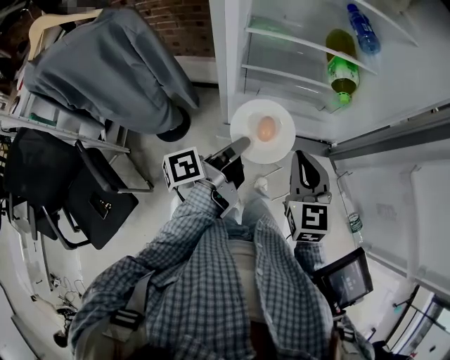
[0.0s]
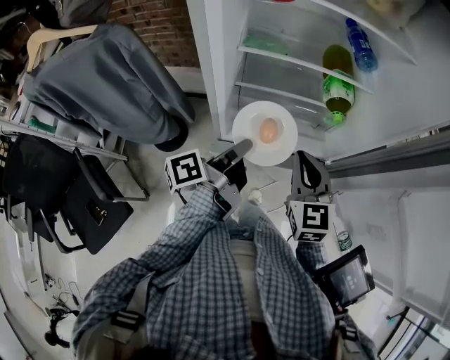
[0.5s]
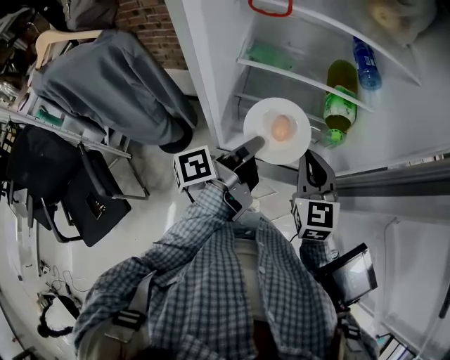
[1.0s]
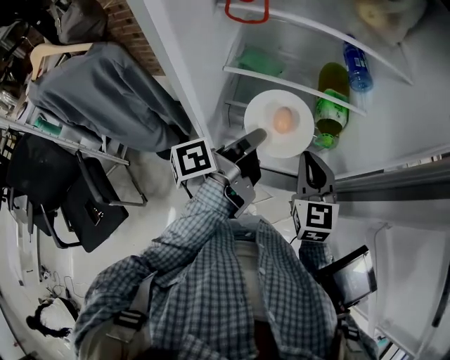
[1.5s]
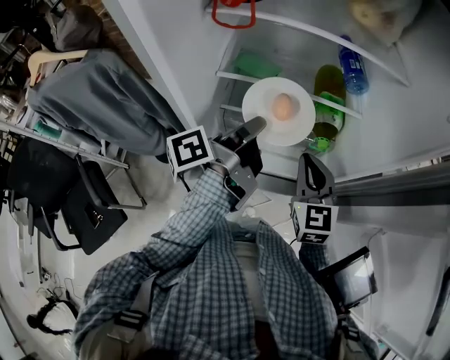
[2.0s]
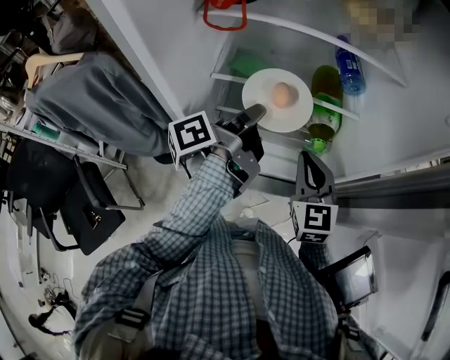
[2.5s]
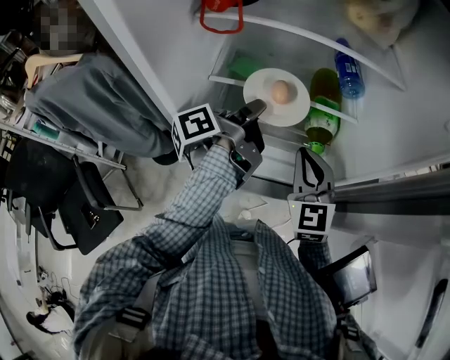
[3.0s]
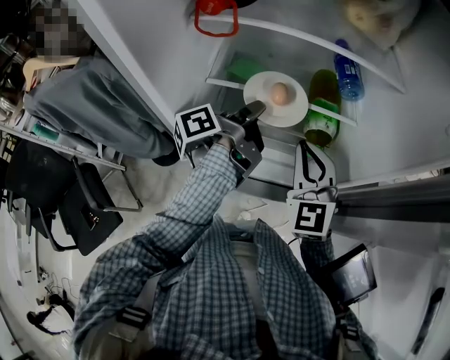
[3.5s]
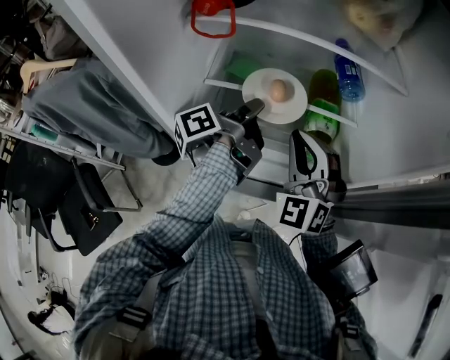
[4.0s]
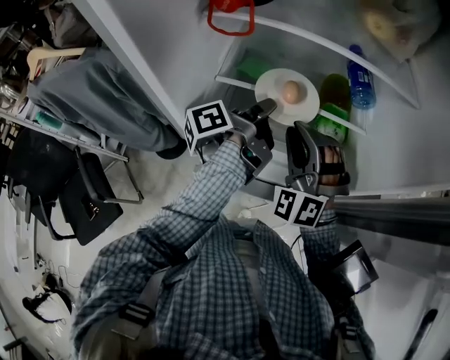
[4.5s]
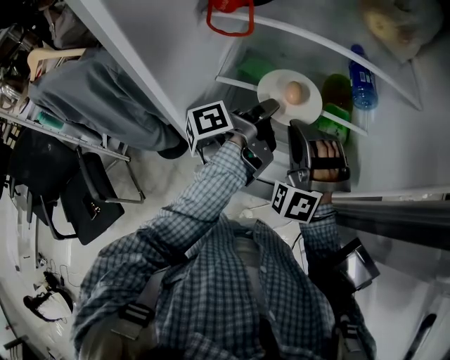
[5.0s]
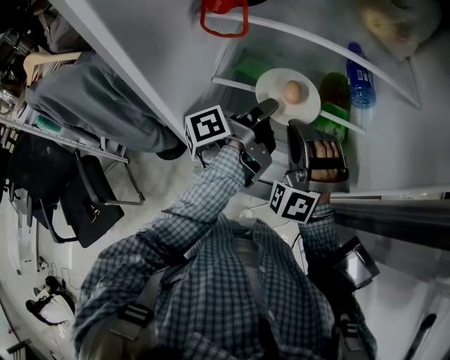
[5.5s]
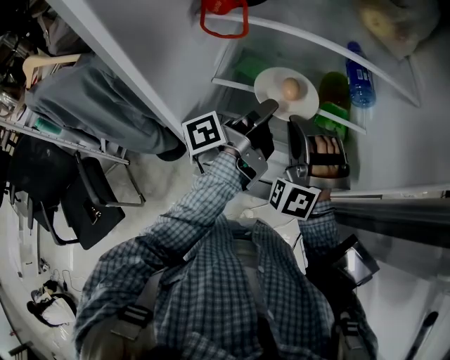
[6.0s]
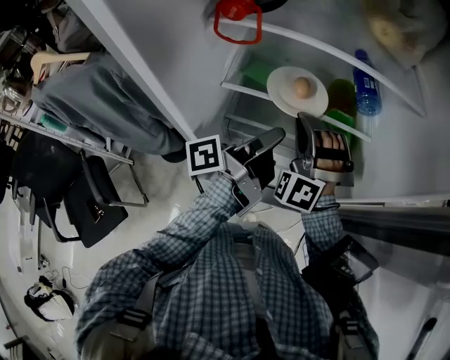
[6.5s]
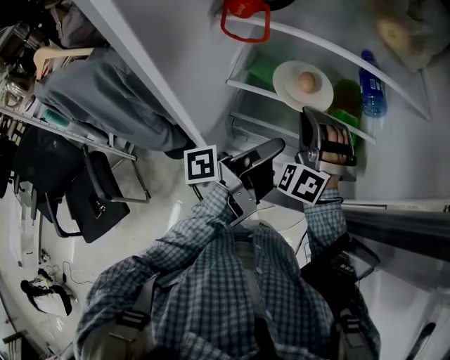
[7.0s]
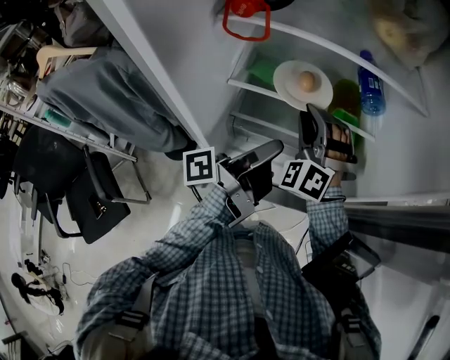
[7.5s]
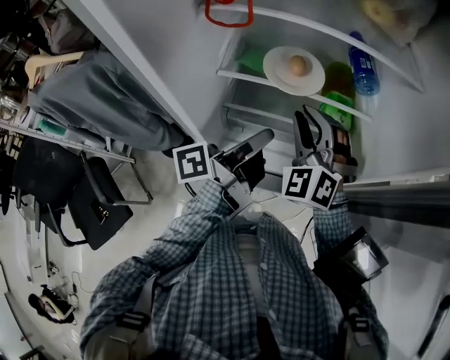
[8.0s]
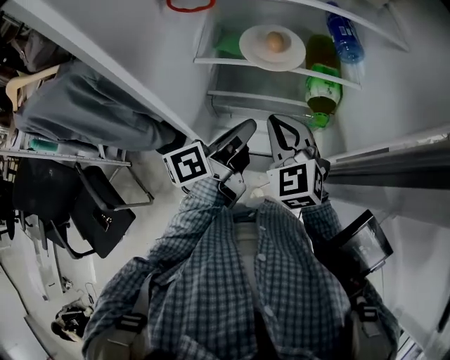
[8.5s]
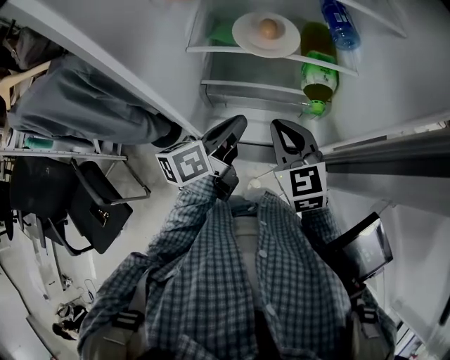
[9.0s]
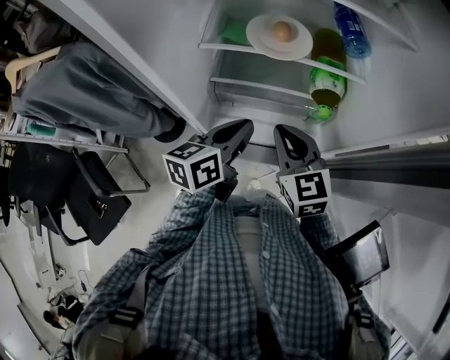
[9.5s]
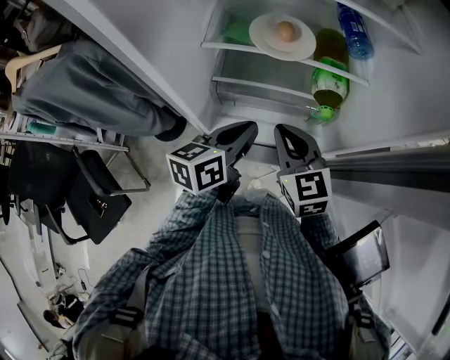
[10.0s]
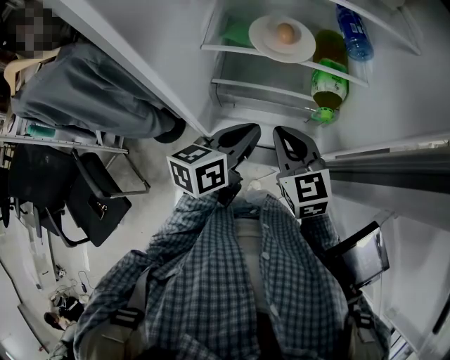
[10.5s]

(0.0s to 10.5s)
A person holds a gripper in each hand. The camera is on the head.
0.0s - 2.0s: The right gripper moves approximately 15 cm.
2.0s - 4.0s: The right gripper shifts by approximately 10 cm, and twists about 40 degrees counterclockwise, seen from behind.
4.0s - 6.5s: The right gripper changes place by approximately 10 cm, and swivels approximately 30 degrees.
6.5s - 8.5s: The right gripper ends up about 10 cm from where it was, and rolls clockwise, seen from behind, by some 50 degrees.

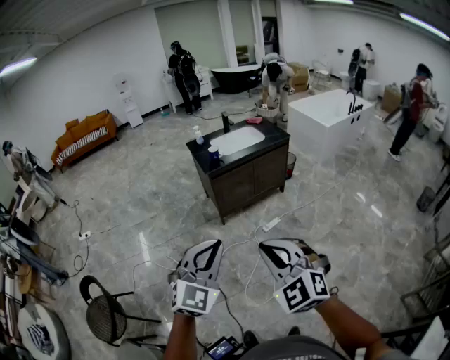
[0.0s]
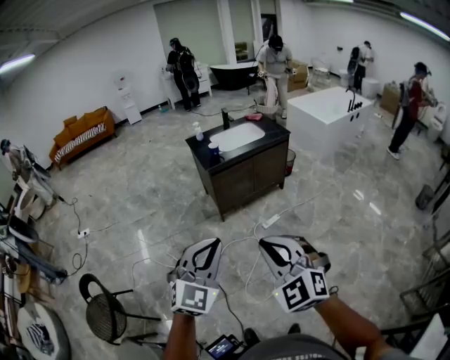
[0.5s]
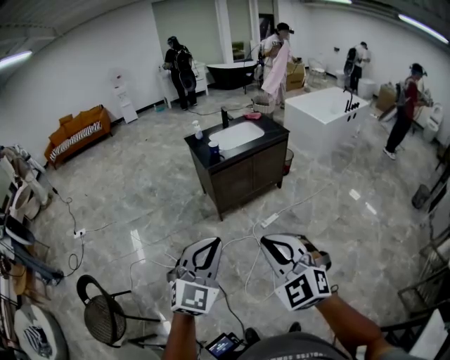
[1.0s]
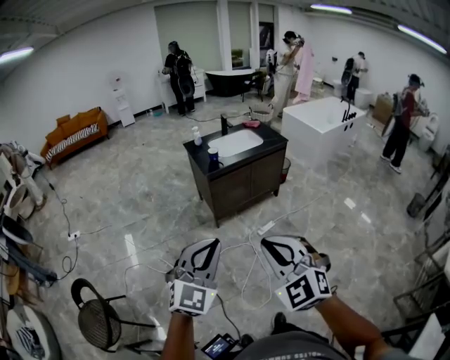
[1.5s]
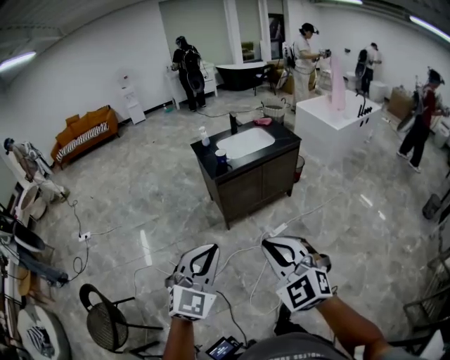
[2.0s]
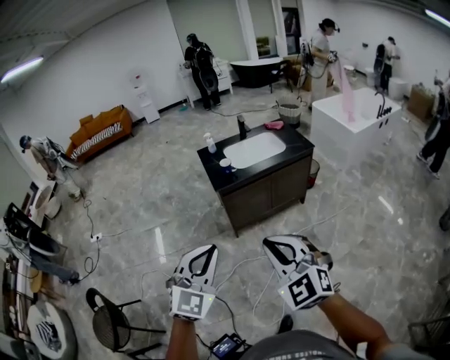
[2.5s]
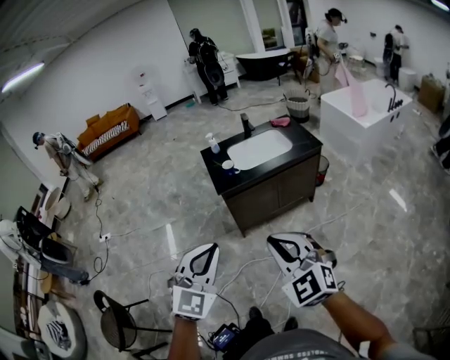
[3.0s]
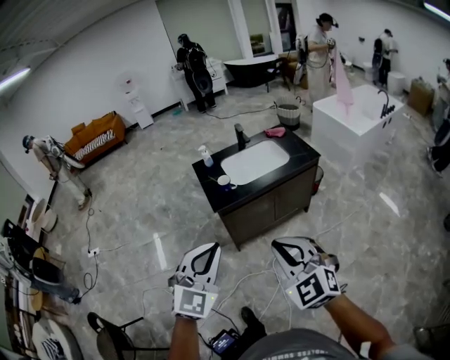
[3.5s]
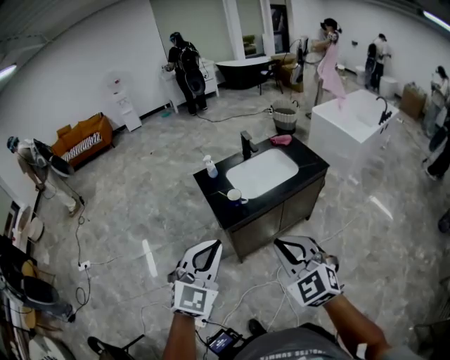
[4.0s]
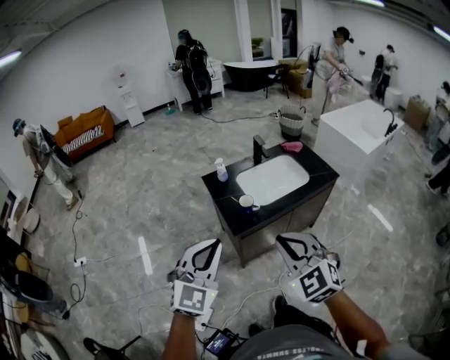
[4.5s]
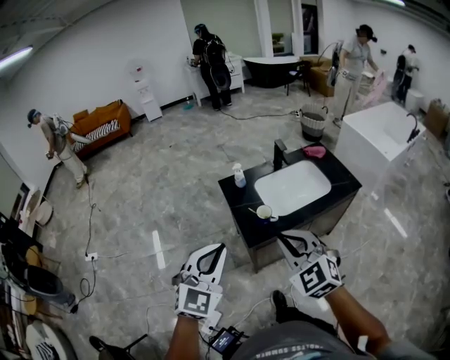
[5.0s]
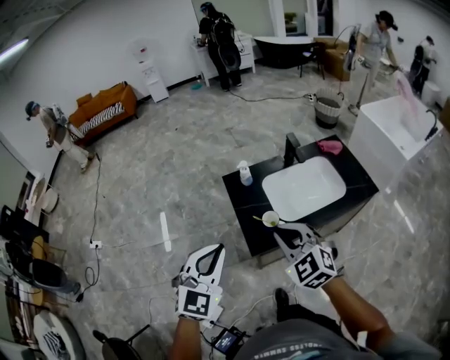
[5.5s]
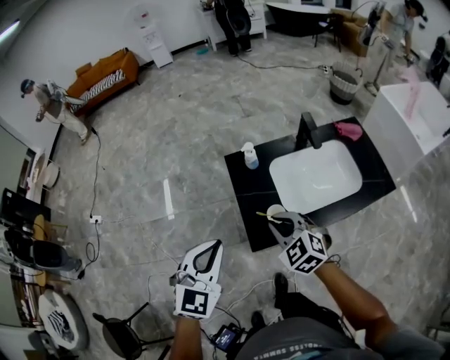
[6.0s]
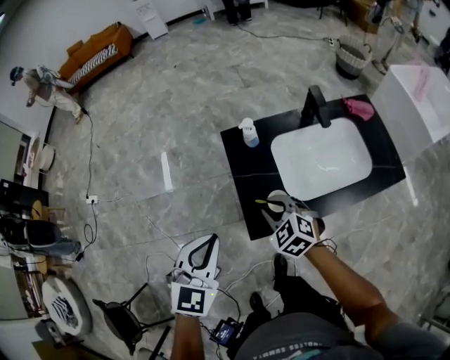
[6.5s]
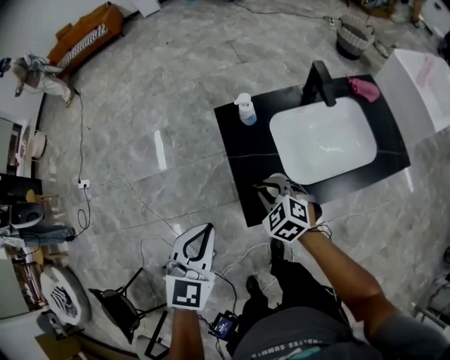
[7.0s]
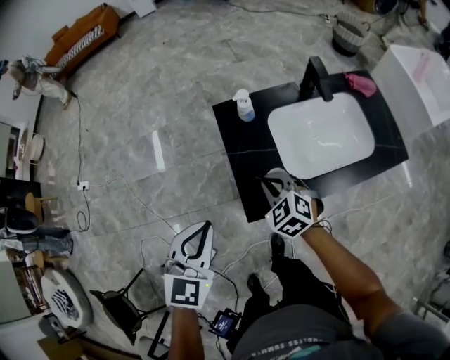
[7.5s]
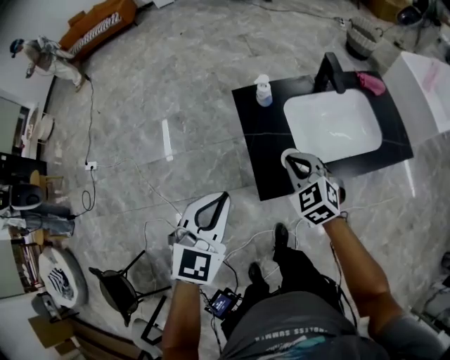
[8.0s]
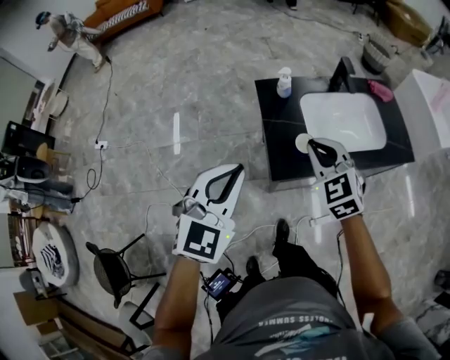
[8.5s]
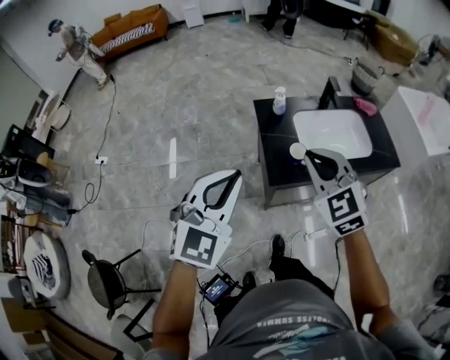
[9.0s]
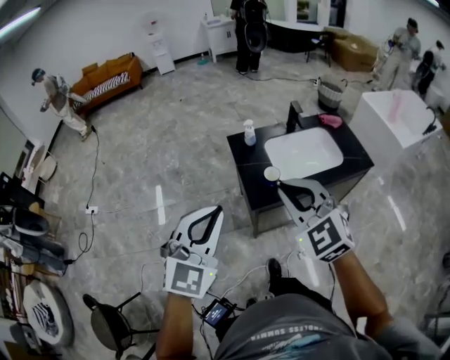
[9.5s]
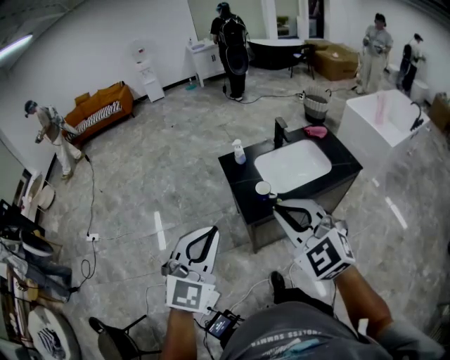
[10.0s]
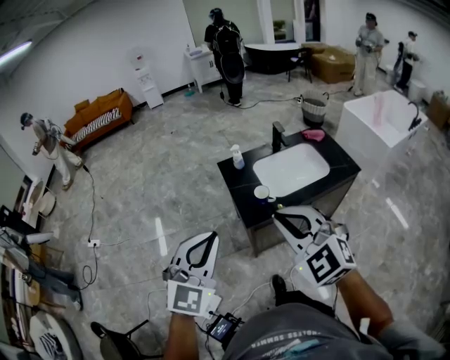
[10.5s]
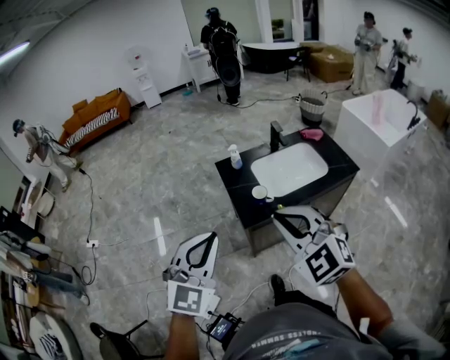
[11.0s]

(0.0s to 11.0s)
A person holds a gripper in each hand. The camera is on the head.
0.0s - 2.0s: Both grippers move forward, approximately 10 cm.
2.0s - 3.5s: The two grippers go about 25 cm forward.
3.5s - 5.5s: The grippers both shift forward and to the left by about 40 cm.
5.5s - 7.5s: The left gripper shifts roughly 15 cm downward and forward. Meanwhile the right gripper is displaced downward and forward by about 25 cm, and changes its angle by roughly 20 degrees.
7.5s - 9.0s: The left gripper is displaced upward and backward by approximately 20 cm, and rotates about 20 degrees. The right gripper moves upward and backward, approximately 30 cm, and swivels some 20 degrees.
9.0s - 11.0s: The left gripper shifts roughly 10 cm backward. The right gripper goes about 15 cm backward and upward.

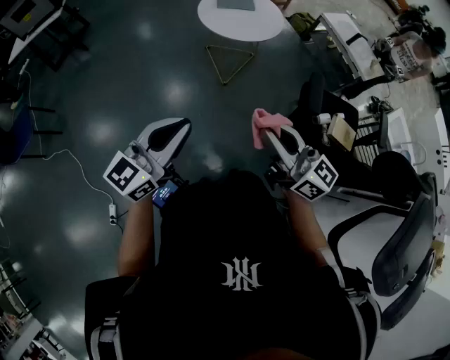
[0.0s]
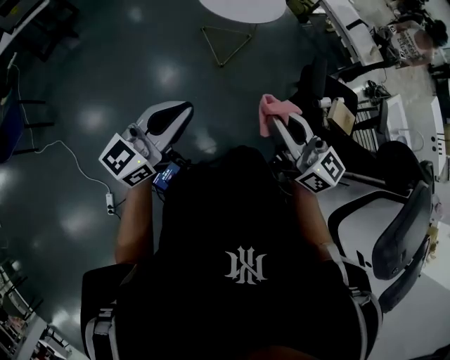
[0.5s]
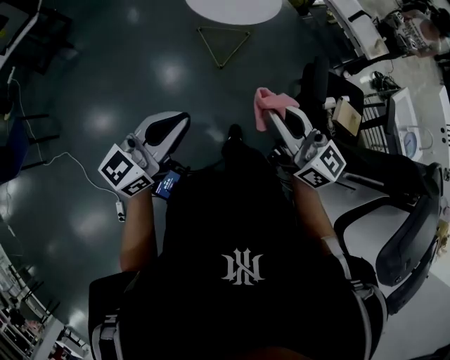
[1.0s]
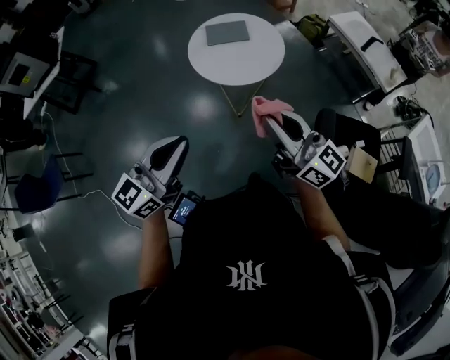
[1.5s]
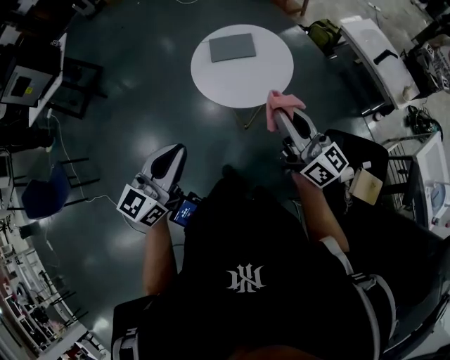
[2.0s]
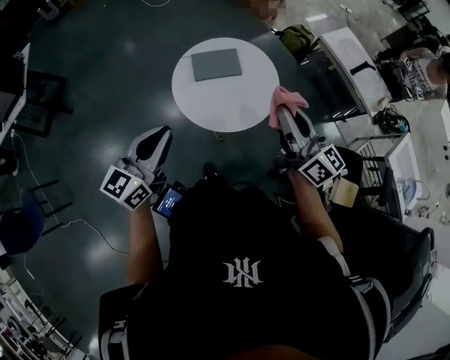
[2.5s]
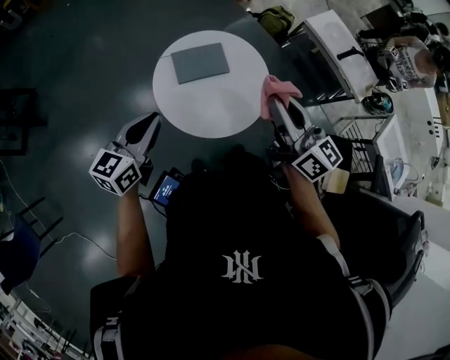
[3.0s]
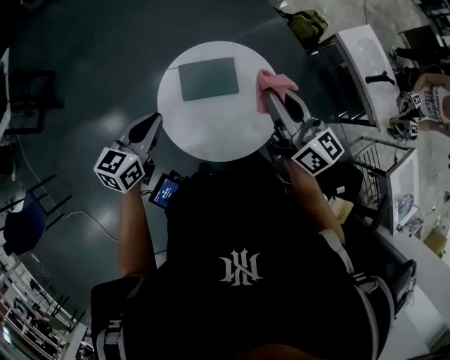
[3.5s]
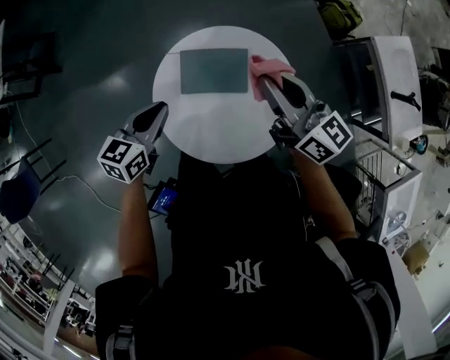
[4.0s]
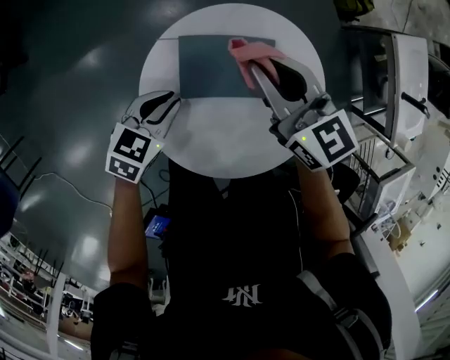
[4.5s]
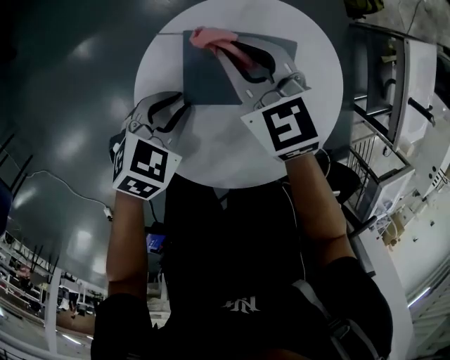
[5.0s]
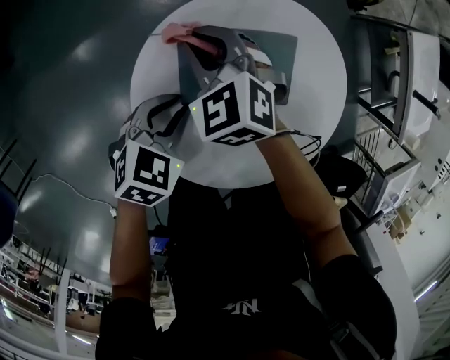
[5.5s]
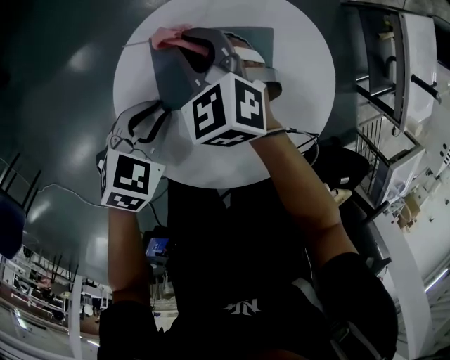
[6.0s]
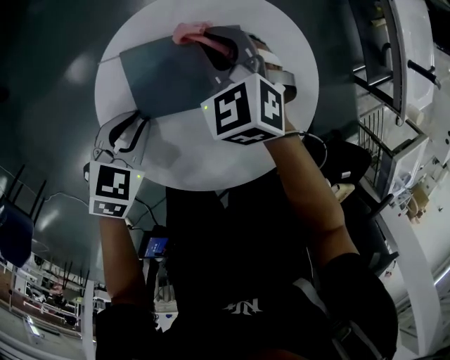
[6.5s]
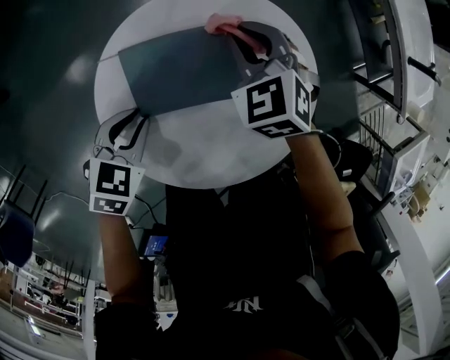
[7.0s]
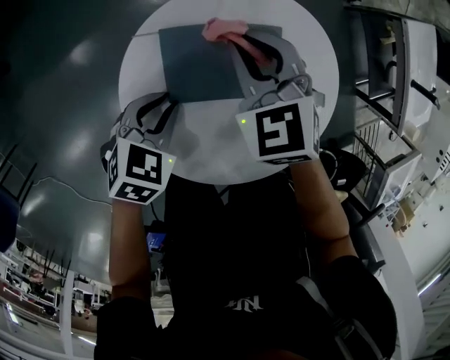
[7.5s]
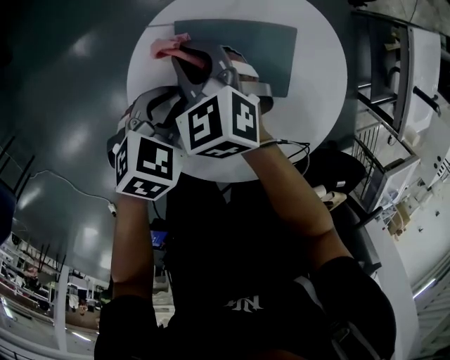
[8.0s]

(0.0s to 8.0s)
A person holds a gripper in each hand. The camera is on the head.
0.0s - 2.0s: The pair of grippers is taken forward, approximately 40 cm.
2.0s - 4.0s: The pair of grippers is taken forward, approximately 50 cm. The right gripper turns by approximately 20 degrees. The left gripper heads downward, covering some 25 cm, and turns by approximately 30 degrees.
4.0s - 6.0s: The right gripper travels downward and to the left by roughly 35 cm, and tilts its fingers some 40 degrees downward. Meanwhile the left gripper shifts about 20 cm downward, and turns by about 30 degrees.
6.0s - 8.0s: The right gripper travels backward by roughly 5 cm, and reaches about 15 cm to the right, then returns.
